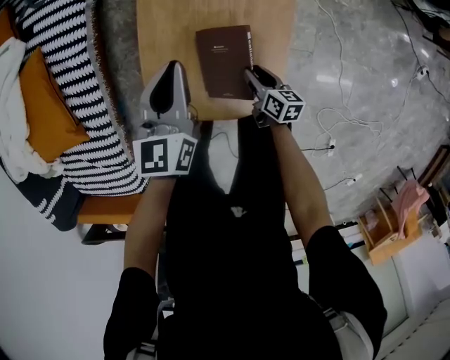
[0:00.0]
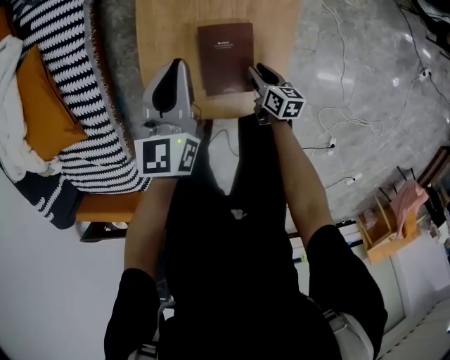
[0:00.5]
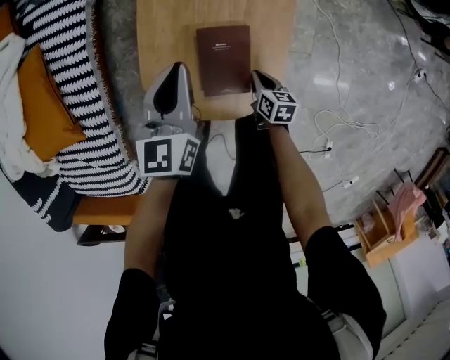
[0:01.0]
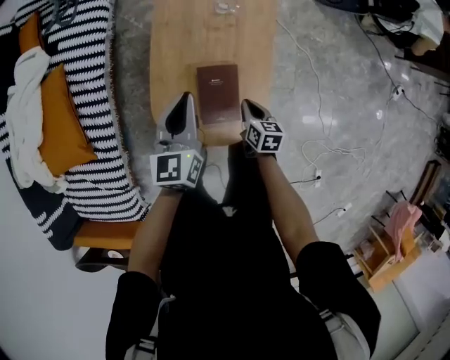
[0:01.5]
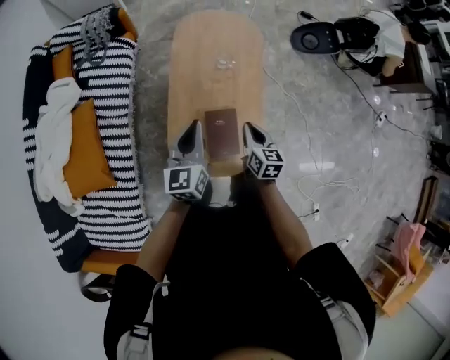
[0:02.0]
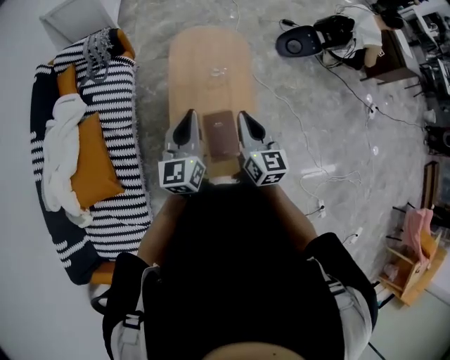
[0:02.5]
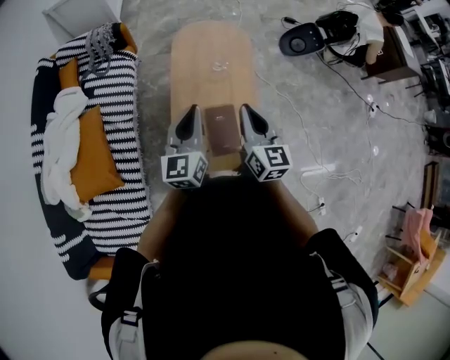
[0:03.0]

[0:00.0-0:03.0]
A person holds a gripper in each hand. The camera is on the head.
0:00.0 to 0:01.5: Both grippers move upward, roughly 10 cm. The right gripper closes.
0:01.5 to 0:03.0: The left gripper heads upward, covering roughly 20 cm. Meanwhile the right gripper shifts some 40 cm upward, and points its fingers some 40 degrees further upward.

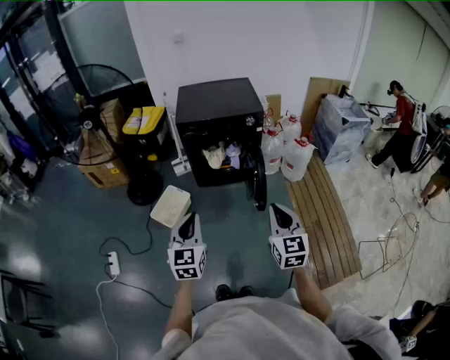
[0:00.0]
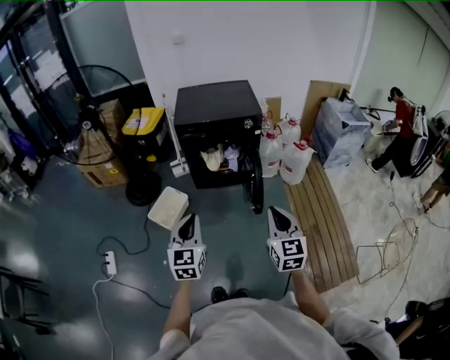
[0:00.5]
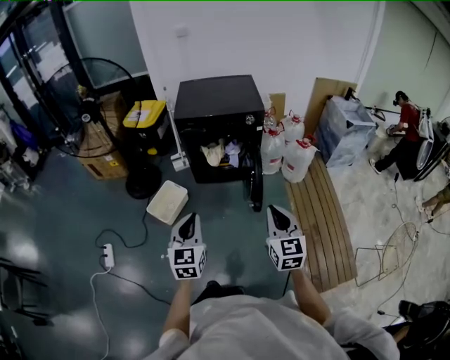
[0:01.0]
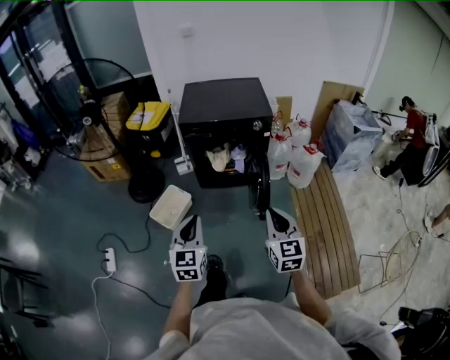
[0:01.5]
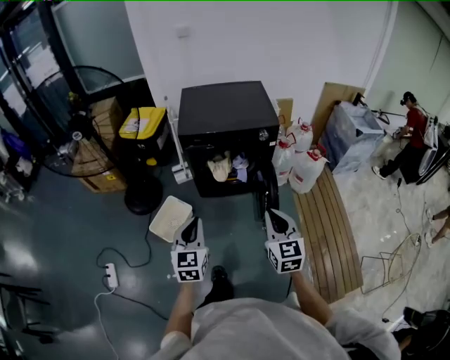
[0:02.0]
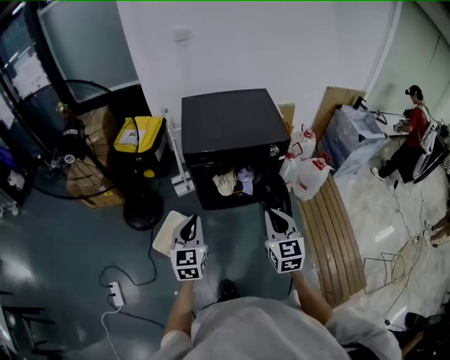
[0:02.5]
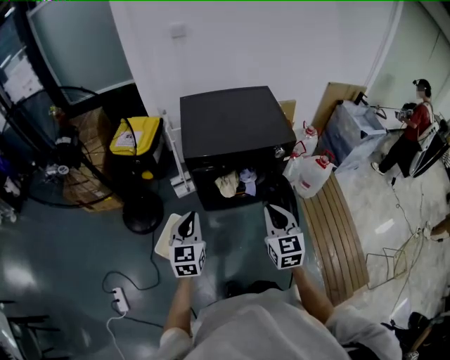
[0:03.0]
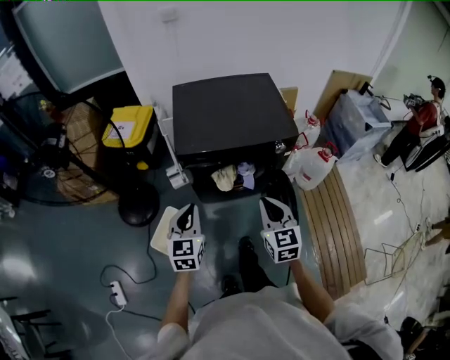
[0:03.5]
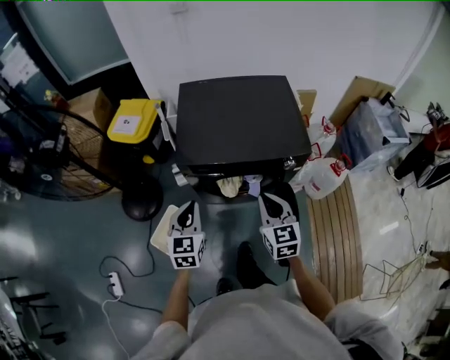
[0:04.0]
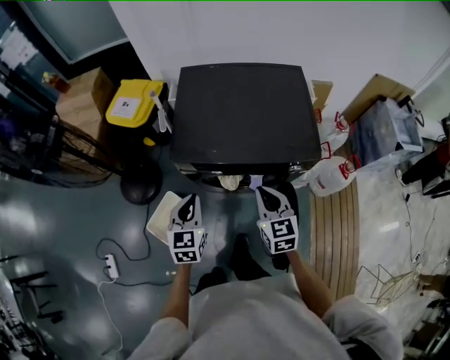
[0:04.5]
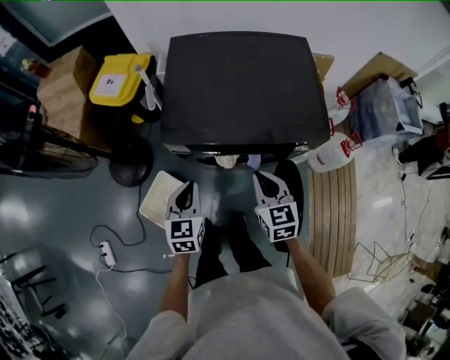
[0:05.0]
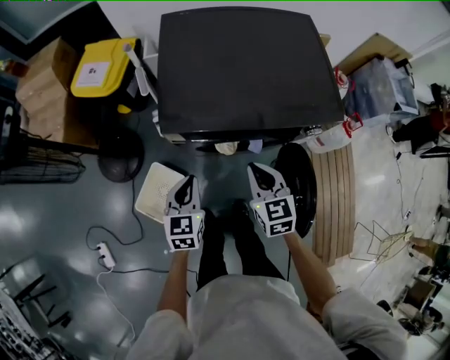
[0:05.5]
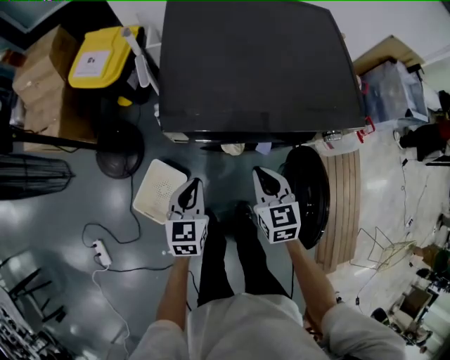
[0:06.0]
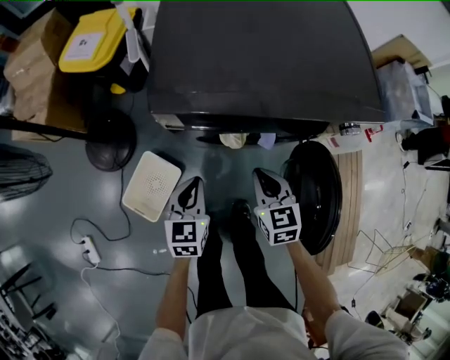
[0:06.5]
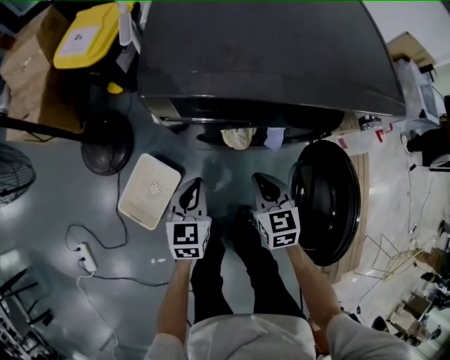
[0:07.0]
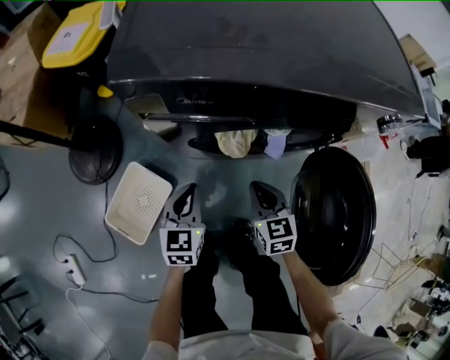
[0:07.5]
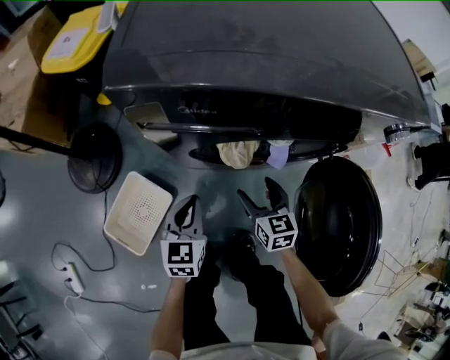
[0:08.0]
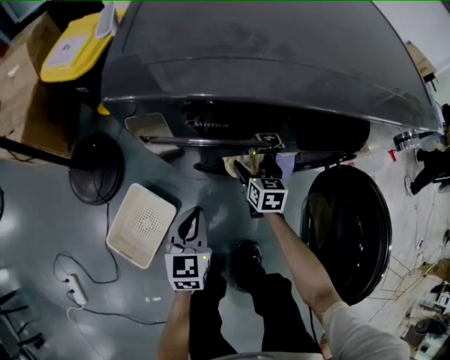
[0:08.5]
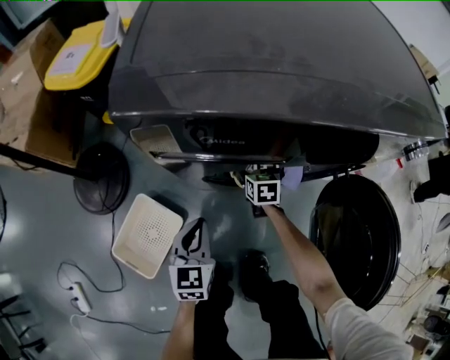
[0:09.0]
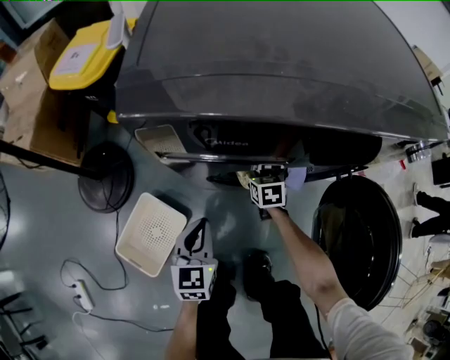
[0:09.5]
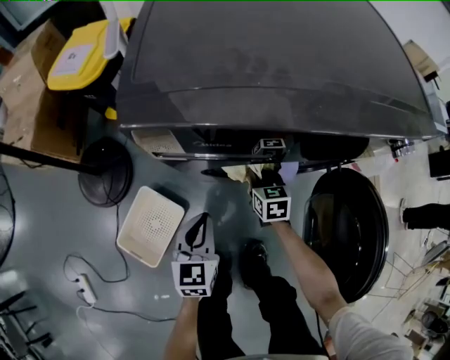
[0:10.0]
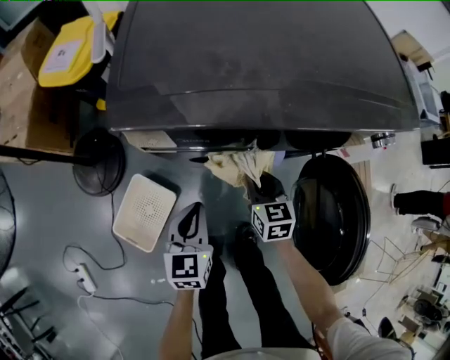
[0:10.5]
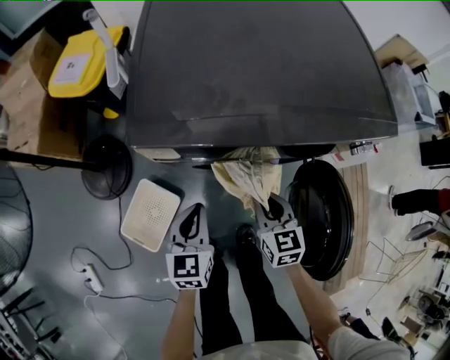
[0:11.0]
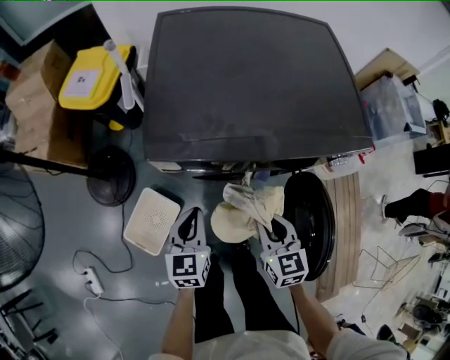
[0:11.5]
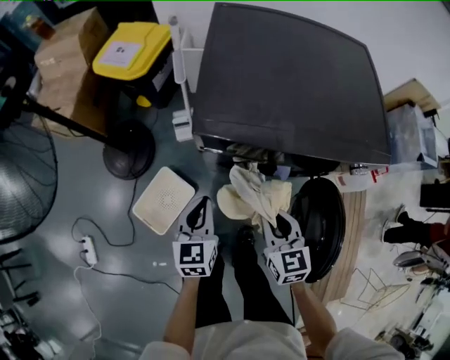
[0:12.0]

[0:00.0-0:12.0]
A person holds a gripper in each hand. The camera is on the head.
0:00.0 to 0:02.0: The two grippers go approximately 20 cm forward.
0:02.0 to 0:04.0: Both grippers travel together forward, approximately 35 cm.
0:04.0 to 0:06.0: The right gripper heads downward and forward, covering roughly 25 cm. Meanwhile the left gripper goes about 20 cm downward.
0:06.0 to 0:08.0: The grippers both shift downward by roughly 30 cm. The right gripper opens up.
0:08.0 to 0:10.0: The right gripper travels forward by approximately 10 cm, and closes.
0:10.0 to 0:12.0: The right gripper heads upward and backward, covering about 35 cm; the left gripper heads upward, covering roughly 20 cm.

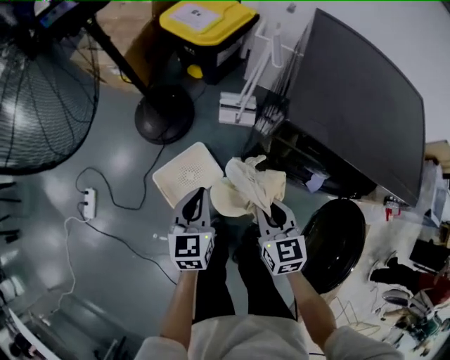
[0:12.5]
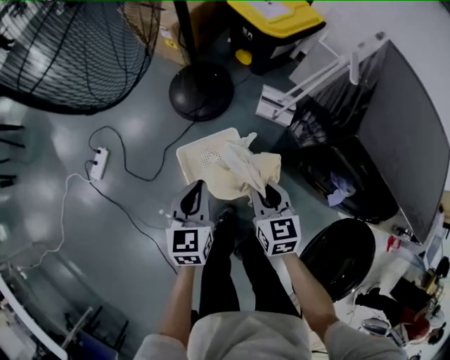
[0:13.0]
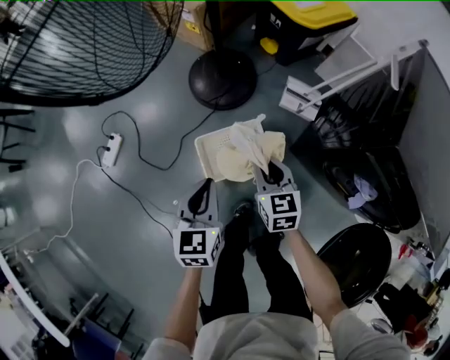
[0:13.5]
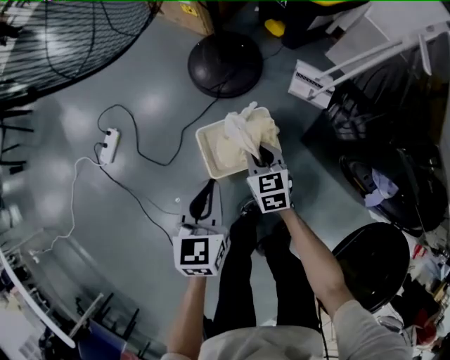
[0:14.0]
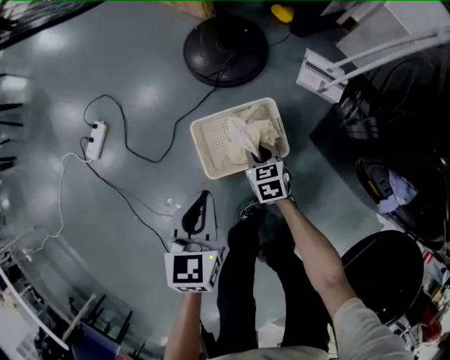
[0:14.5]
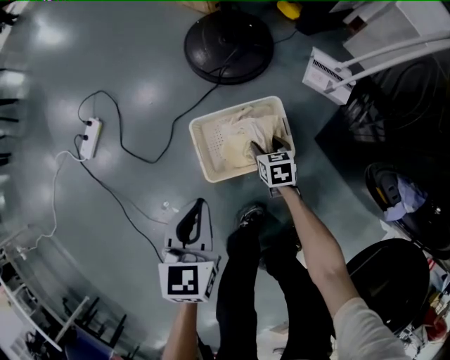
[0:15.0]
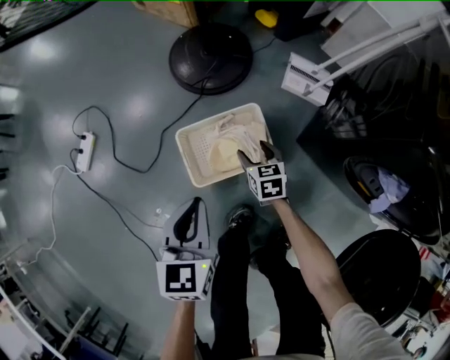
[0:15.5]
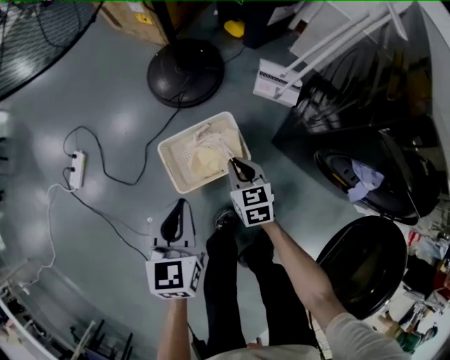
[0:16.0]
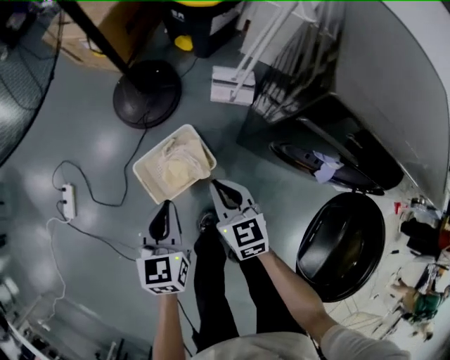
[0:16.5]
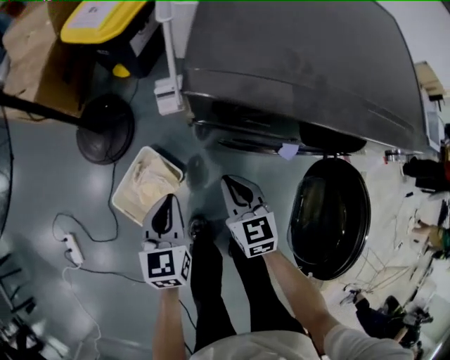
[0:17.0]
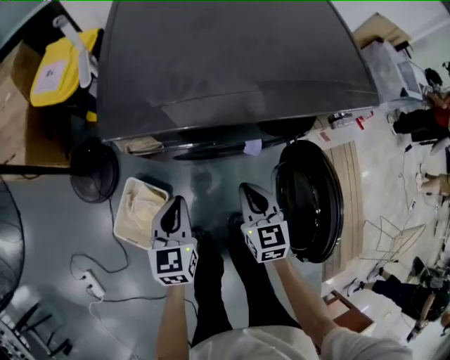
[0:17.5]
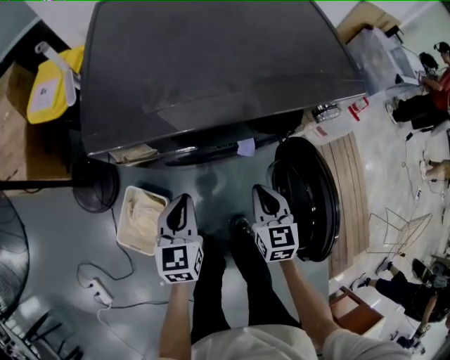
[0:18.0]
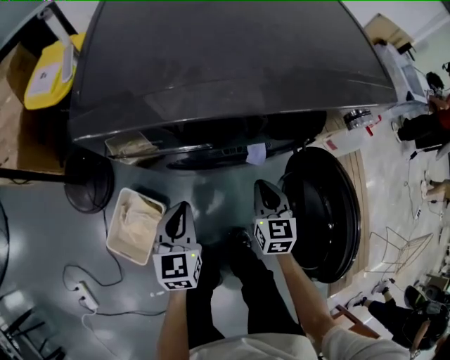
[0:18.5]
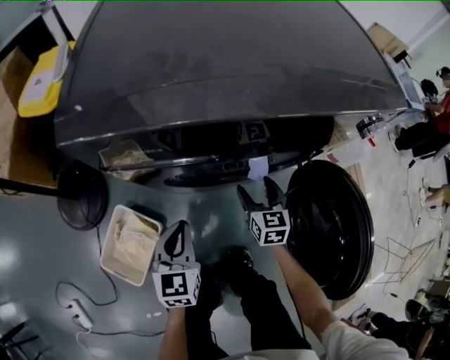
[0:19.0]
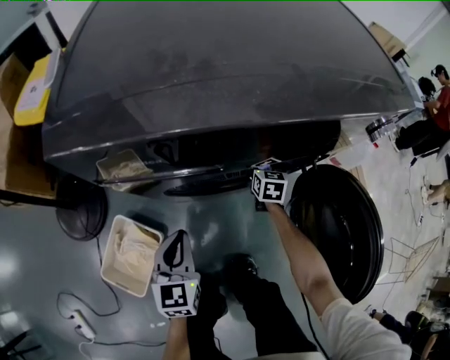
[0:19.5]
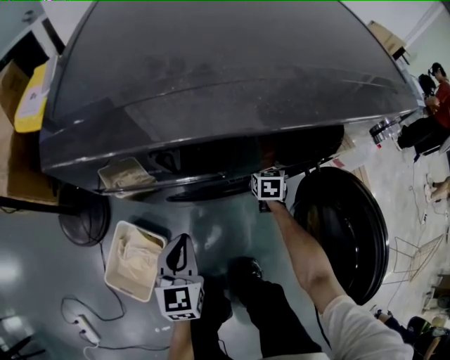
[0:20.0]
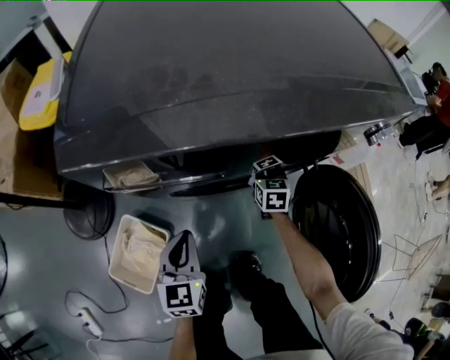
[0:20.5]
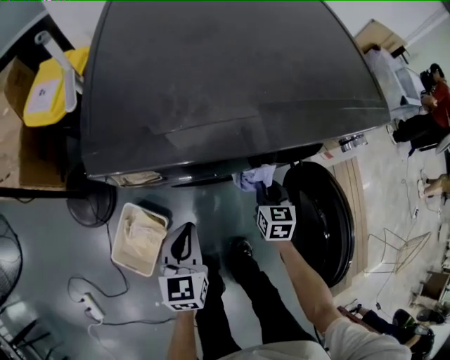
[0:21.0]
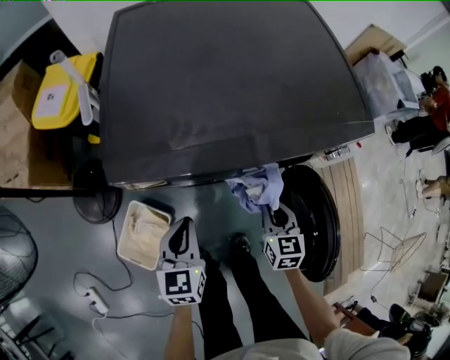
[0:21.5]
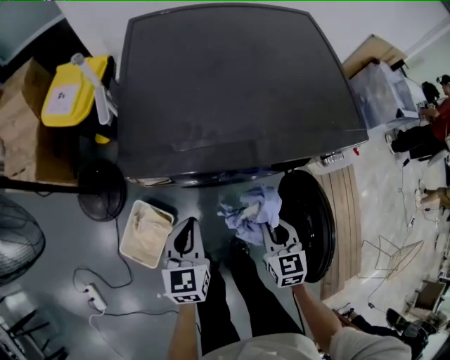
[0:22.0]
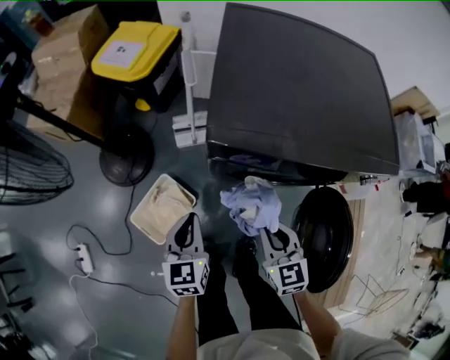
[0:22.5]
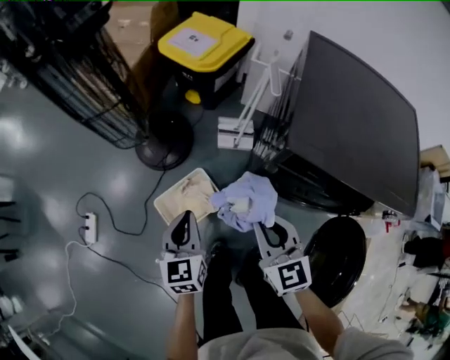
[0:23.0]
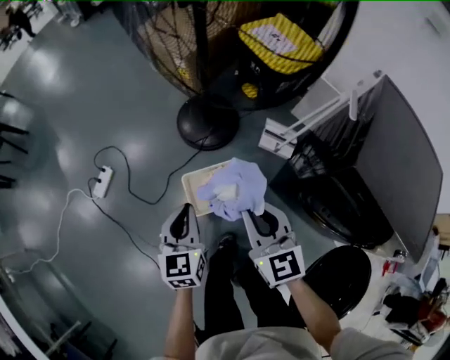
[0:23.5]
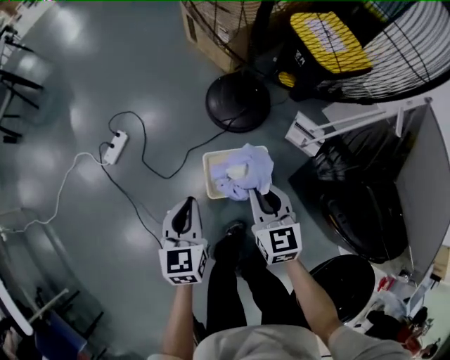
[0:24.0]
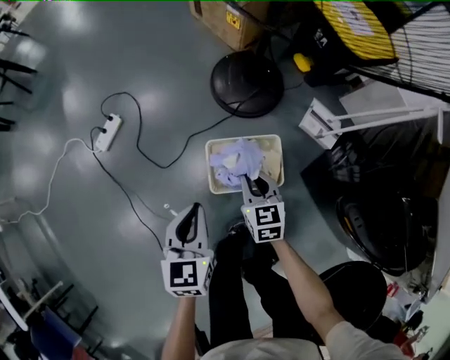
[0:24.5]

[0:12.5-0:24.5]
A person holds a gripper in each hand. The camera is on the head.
0:12.5 to 0:14.5: The right gripper heads downward and to the left, covering approximately 50 cm, and turns by about 30 degrees. The left gripper shifts approximately 30 cm downward and to the left, and changes its angle by about 20 degrees.
0:14.5 to 0:16.5: The left gripper goes some 15 cm to the right and upward. Meanwhile the right gripper goes roughly 30 cm upward and to the right, rotates approximately 20 degrees, and opens and closes again.
0:16.5 to 0:18.5: The left gripper moves roughly 5 cm upward and comes back, and rotates about 40 degrees, while the right gripper travels upward and back again, some 10 cm each way, and turns by roughly 50 degrees.
0:18.5 to 0:20.5: The left gripper shifts by about 5 cm. The right gripper is displaced forward and downward by some 20 cm, and opens, then closes again.
0:20.5 to 0:22.5: The left gripper is displaced upward by approximately 15 cm, while the right gripper travels upward by roughly 30 cm, and swivels approximately 30 degrees.
0:22.5 to 0:24.5: The left gripper ends up roughly 40 cm from where it was, and swivels approximately 40 degrees. The right gripper moves approximately 50 cm, and turns by roughly 40 degrees.
